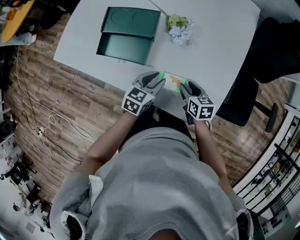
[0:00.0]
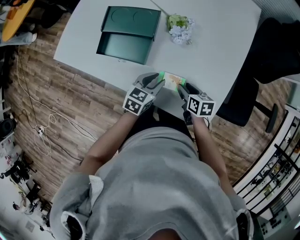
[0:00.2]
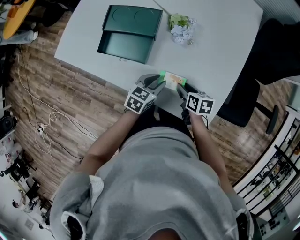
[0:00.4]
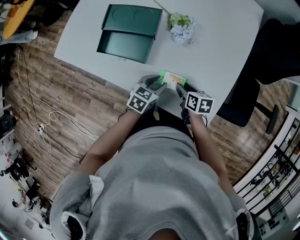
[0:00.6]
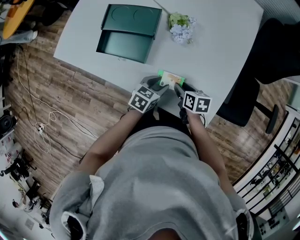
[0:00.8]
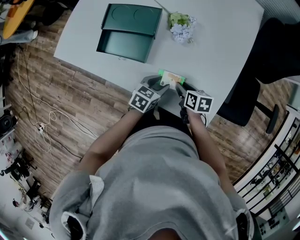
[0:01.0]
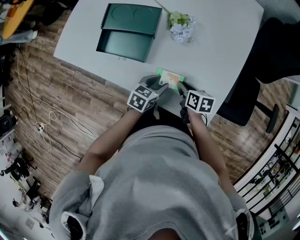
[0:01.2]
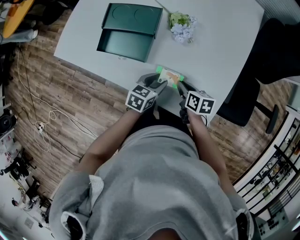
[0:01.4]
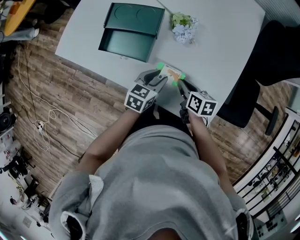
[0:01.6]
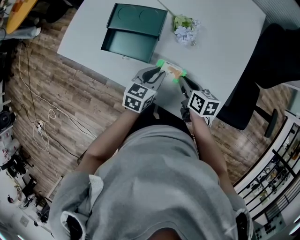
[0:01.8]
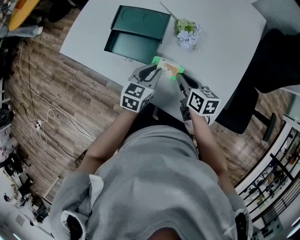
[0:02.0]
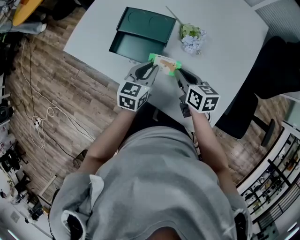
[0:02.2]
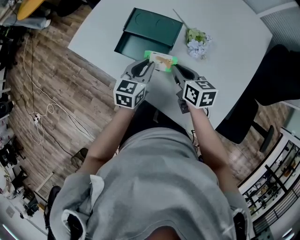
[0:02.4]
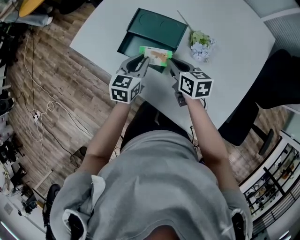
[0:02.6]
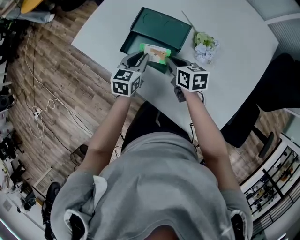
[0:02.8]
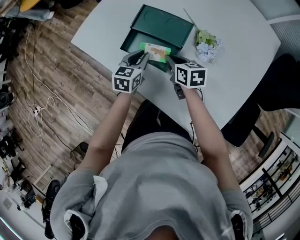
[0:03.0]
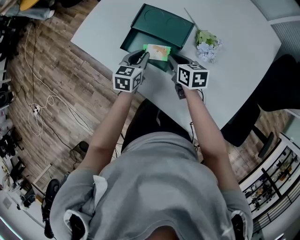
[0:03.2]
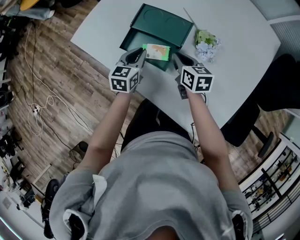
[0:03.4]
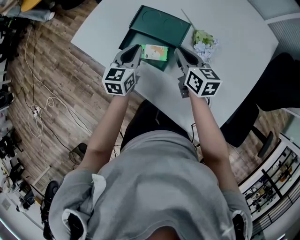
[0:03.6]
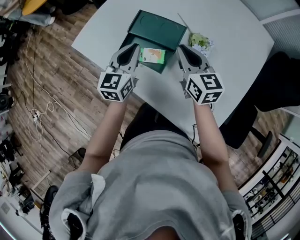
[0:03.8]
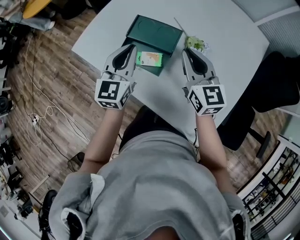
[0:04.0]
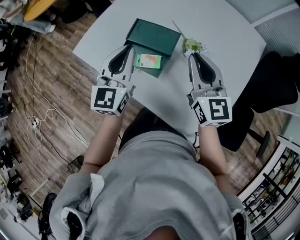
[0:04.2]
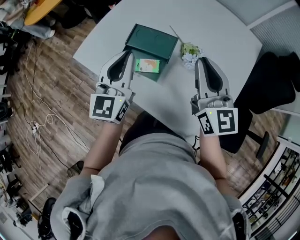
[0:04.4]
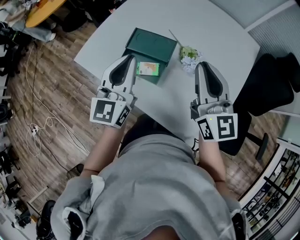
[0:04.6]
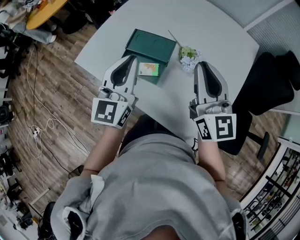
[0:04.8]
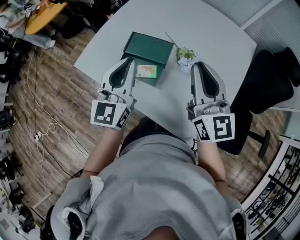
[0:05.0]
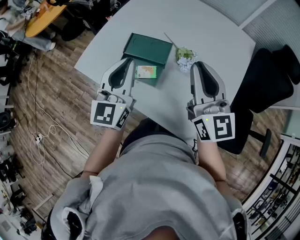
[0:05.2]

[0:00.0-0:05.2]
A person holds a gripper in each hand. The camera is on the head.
0:00.0 to 0:01.8: The left gripper moves roughly 5 cm downward and comes back, while the right gripper moves roughly 5 cm, and closes up.
0:01.8 to 0:03.4: The right gripper is displaced forward and to the left by approximately 20 cm, and rotates about 20 degrees. The left gripper shifts about 20 cm to the left and forward, and swivels some 20 degrees.
0:03.4 to 0:05.2: The grippers both shift upward by roughly 30 cm. The right gripper angles its fingers upward, by some 40 degrees; the left gripper angles its fingers upward, by some 30 degrees.

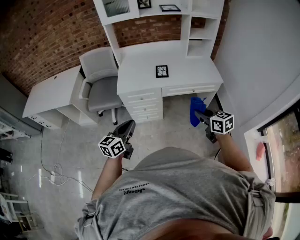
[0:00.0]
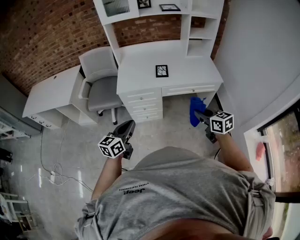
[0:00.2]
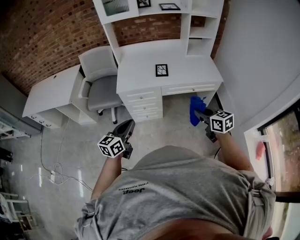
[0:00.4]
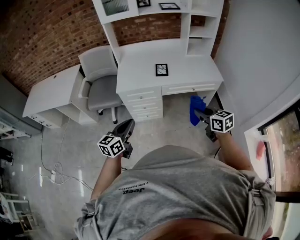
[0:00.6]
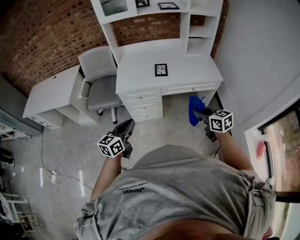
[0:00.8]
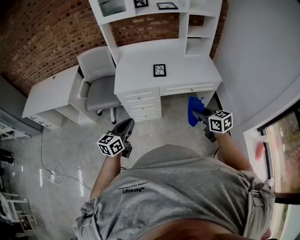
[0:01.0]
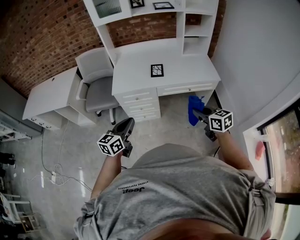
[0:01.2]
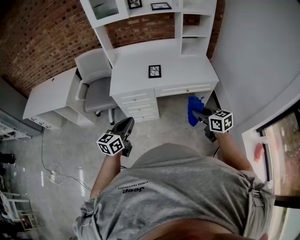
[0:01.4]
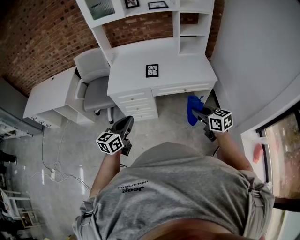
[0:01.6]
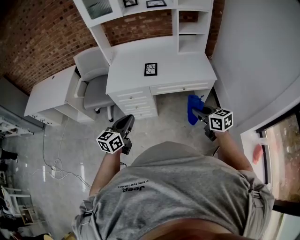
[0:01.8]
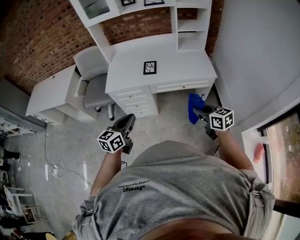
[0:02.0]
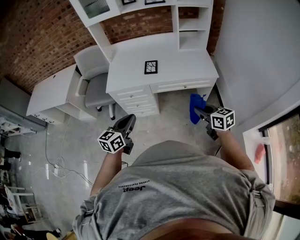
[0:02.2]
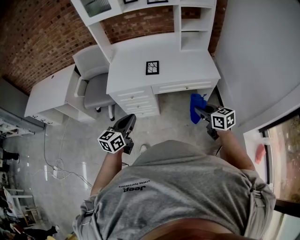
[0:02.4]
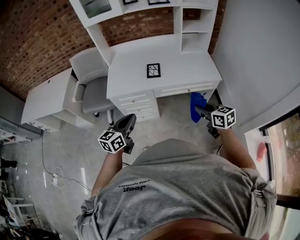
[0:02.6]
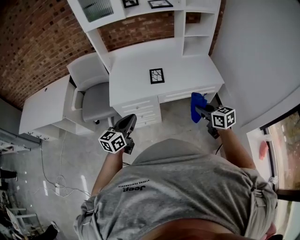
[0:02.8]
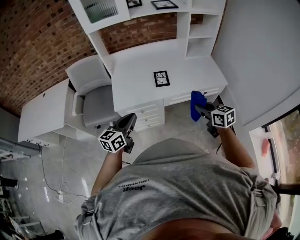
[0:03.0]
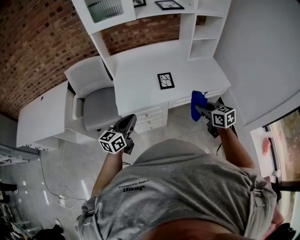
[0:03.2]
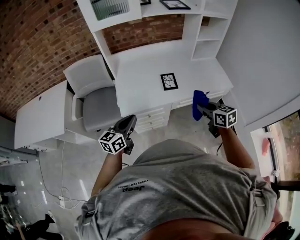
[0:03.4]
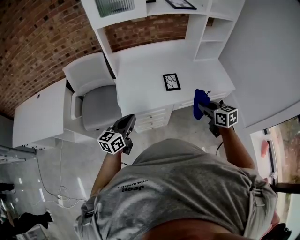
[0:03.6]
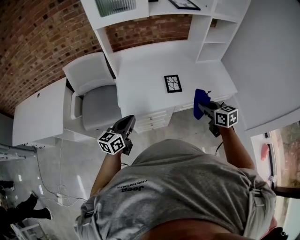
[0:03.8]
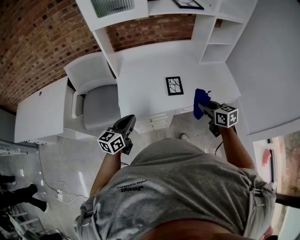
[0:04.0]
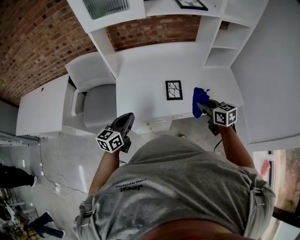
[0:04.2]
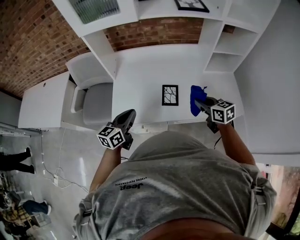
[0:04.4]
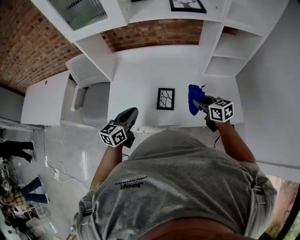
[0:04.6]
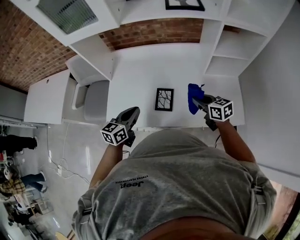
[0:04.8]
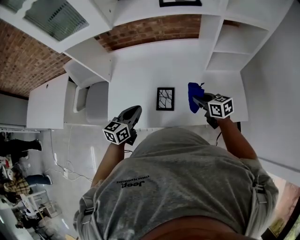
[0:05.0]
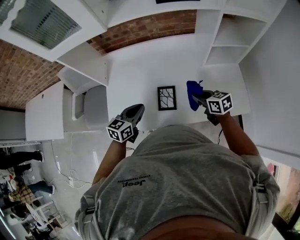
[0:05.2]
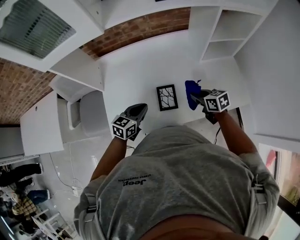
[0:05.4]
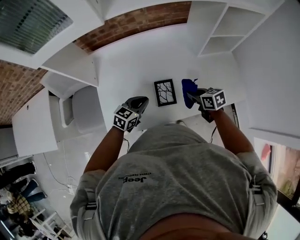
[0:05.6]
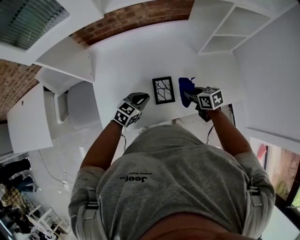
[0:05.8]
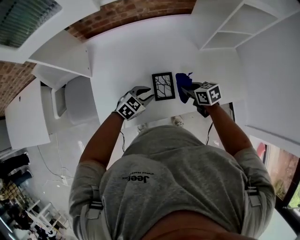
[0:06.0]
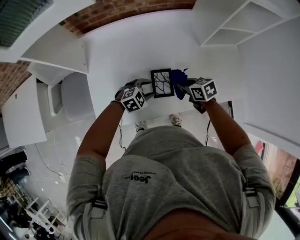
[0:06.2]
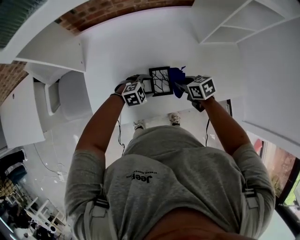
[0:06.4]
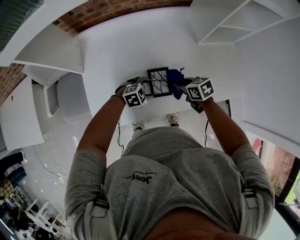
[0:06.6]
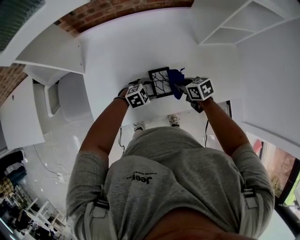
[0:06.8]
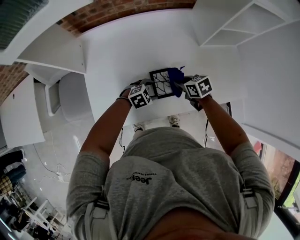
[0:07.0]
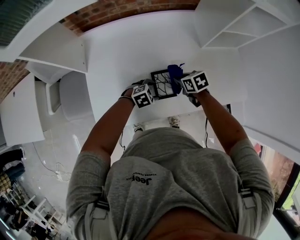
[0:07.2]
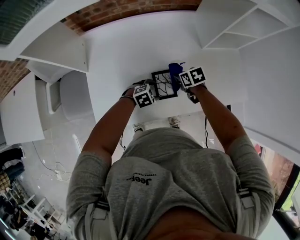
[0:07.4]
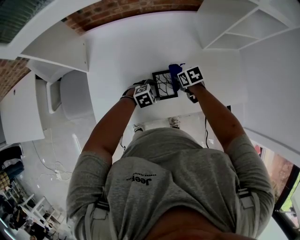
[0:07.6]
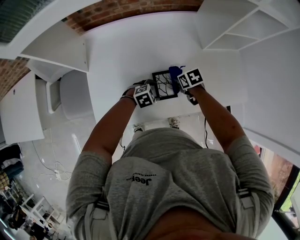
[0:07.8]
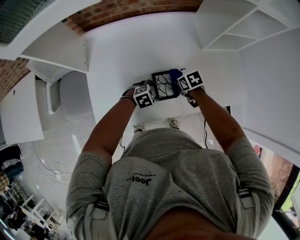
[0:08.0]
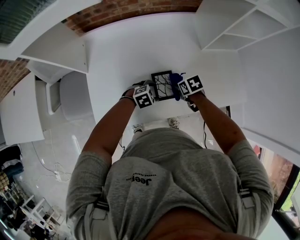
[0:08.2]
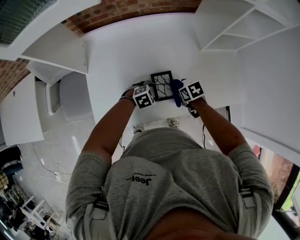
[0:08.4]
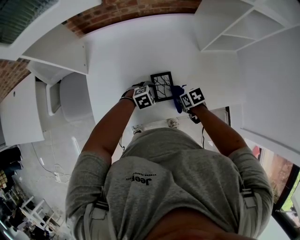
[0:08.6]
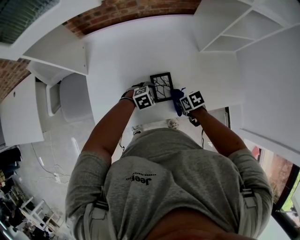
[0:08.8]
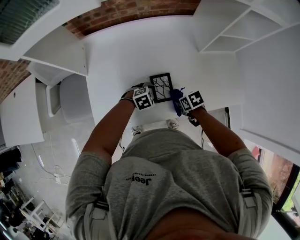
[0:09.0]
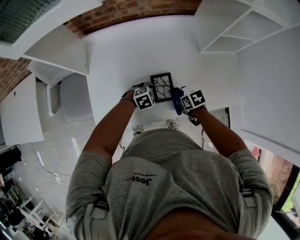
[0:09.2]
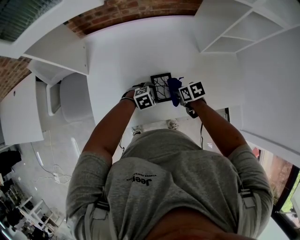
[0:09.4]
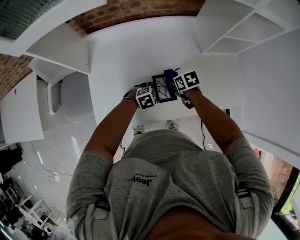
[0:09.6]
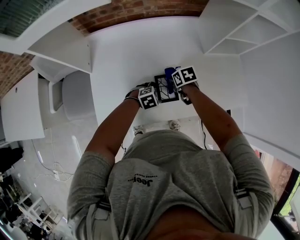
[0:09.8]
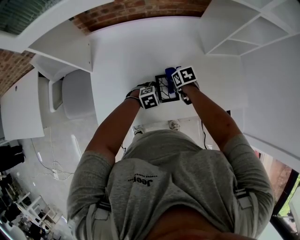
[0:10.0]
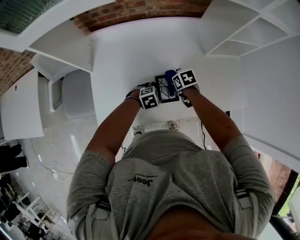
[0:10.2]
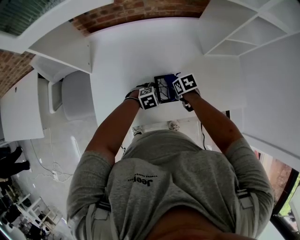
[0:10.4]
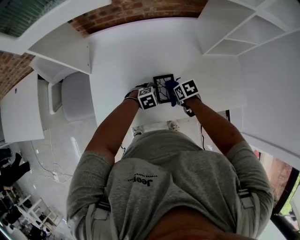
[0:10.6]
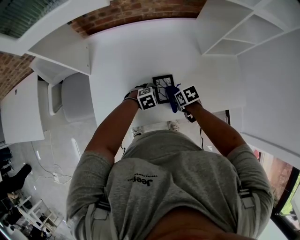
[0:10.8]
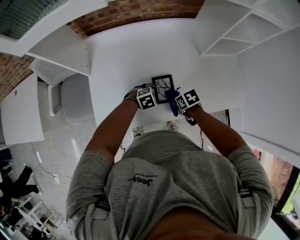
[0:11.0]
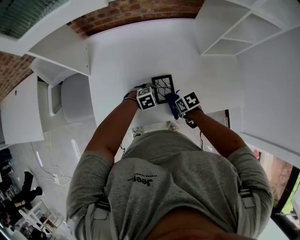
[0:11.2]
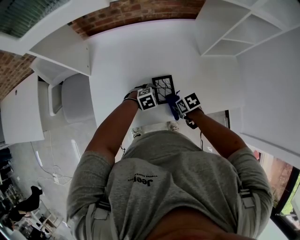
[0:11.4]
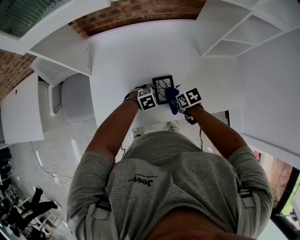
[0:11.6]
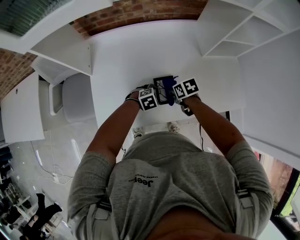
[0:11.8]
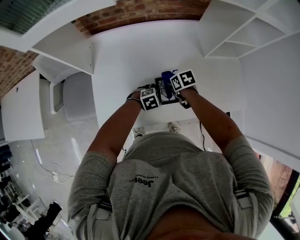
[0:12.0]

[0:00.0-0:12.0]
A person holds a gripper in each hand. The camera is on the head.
0:00.0 to 0:01.6: Both grippers travel together to the right, roughly 10 cm.
0:01.6 to 0:03.0: Both grippers travel together forward and to the left, about 20 cm.
0:03.0 to 0:04.4: The grippers both shift forward by approximately 25 cm.
0:04.4 to 0:06.0: The left gripper heads downward, forward and to the right, covering approximately 25 cm, and swivels approximately 60 degrees. The right gripper heads downward and forward, covering approximately 20 cm, and changes its angle by about 20 degrees.
0:06.0 to 0:07.6: Both grippers travel together downward, approximately 10 cm. The left gripper rotates about 20 degrees, and opens up.
0:07.6 to 0:09.0: The right gripper shifts by about 10 cm.
0:09.0 to 0:10.4: The right gripper moves approximately 10 cm.

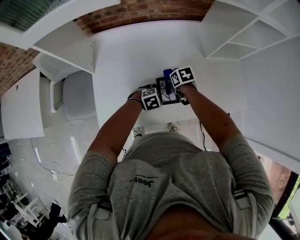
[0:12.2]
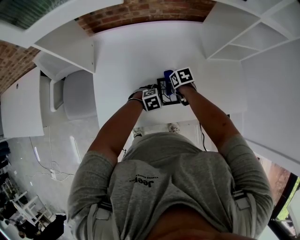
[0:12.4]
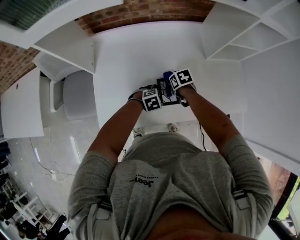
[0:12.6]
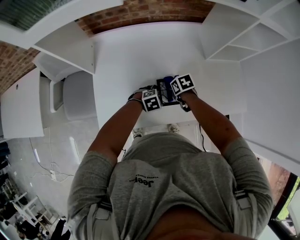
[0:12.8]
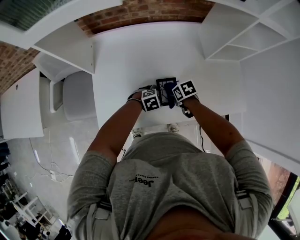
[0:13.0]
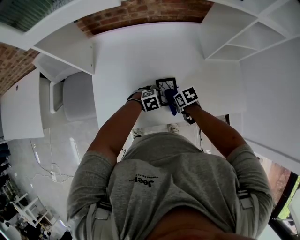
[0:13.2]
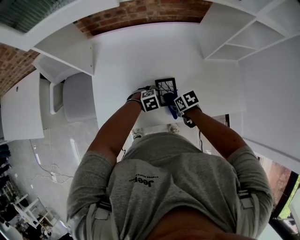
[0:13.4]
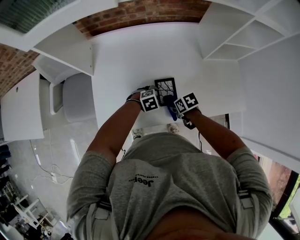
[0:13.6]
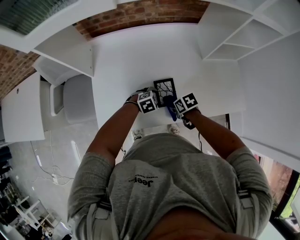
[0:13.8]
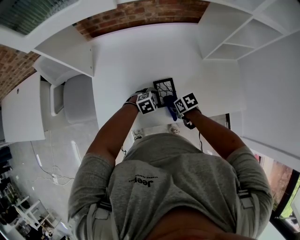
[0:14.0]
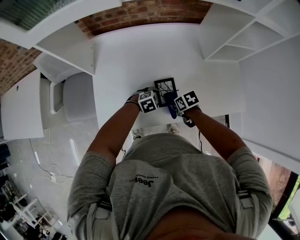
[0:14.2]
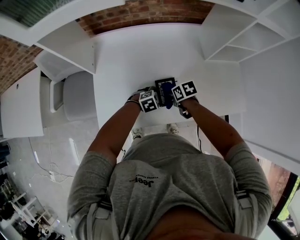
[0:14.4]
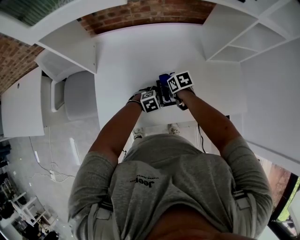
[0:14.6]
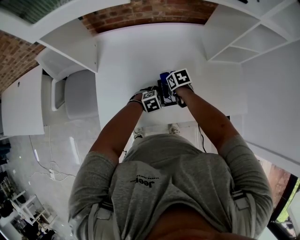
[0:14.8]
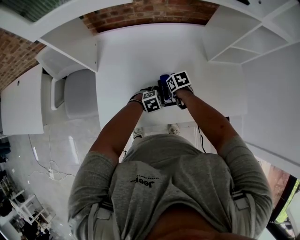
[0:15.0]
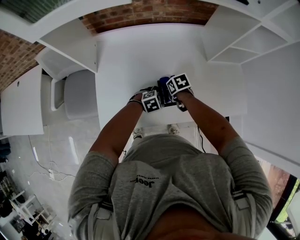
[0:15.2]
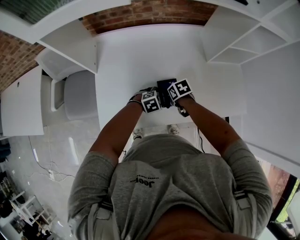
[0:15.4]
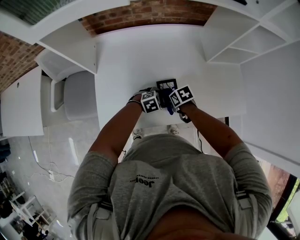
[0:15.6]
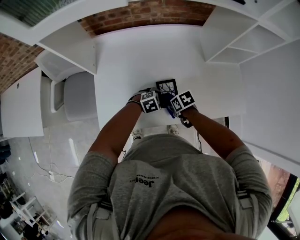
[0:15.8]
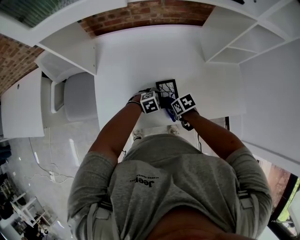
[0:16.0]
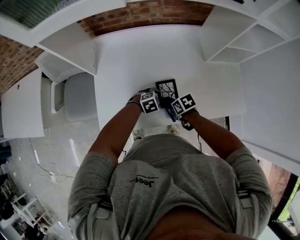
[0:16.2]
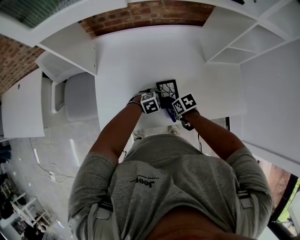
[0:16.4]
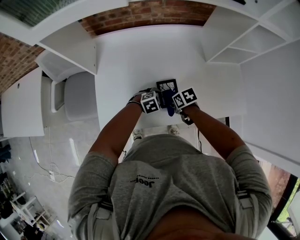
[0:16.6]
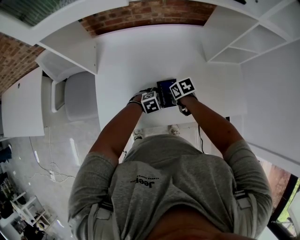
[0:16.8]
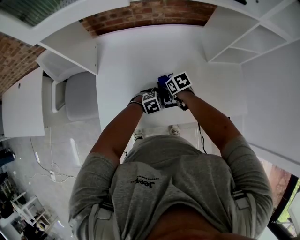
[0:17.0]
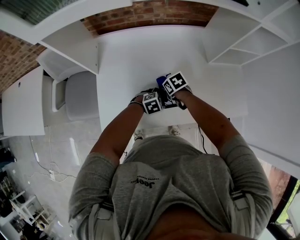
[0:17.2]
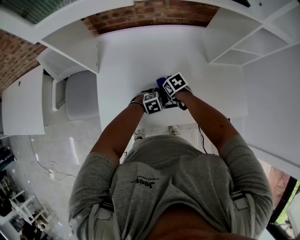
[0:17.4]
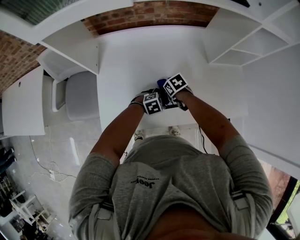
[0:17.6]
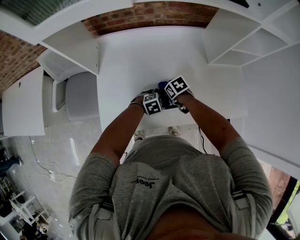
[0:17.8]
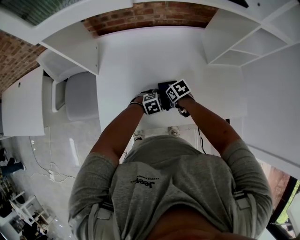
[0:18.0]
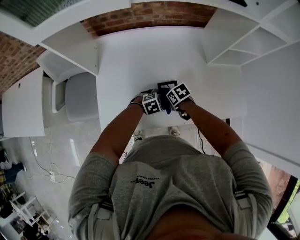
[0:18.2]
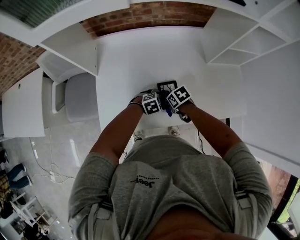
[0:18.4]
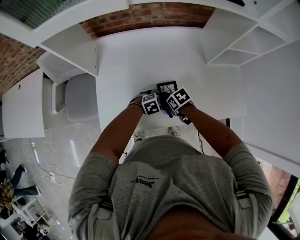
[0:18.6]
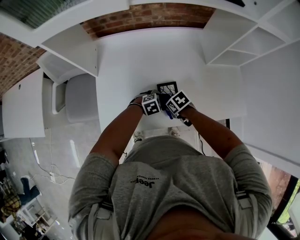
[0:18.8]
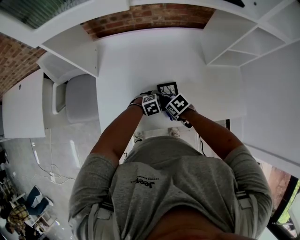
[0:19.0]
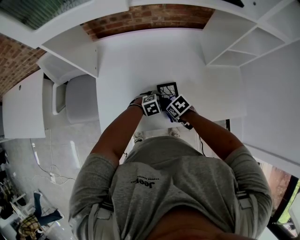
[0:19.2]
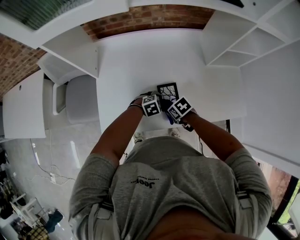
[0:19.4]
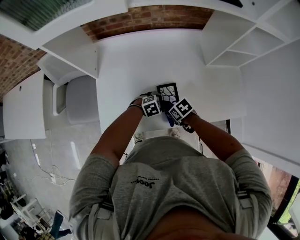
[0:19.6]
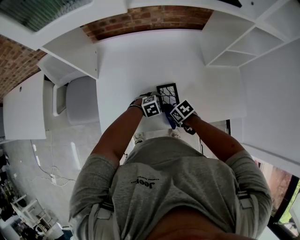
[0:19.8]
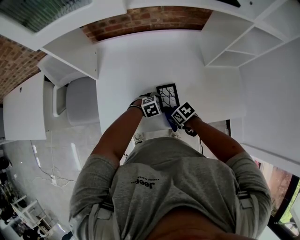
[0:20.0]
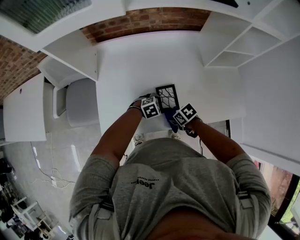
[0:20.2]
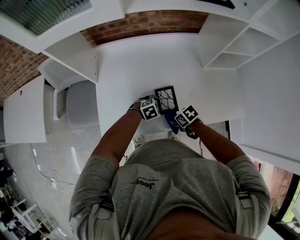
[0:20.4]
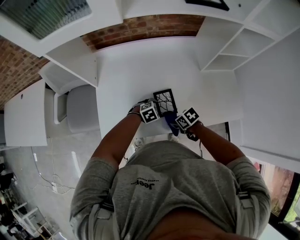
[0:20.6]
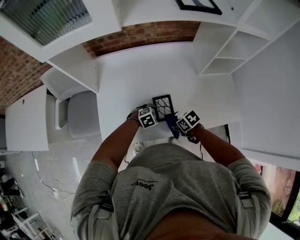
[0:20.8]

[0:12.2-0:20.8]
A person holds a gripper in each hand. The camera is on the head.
0:12.2 to 0:13.6: The right gripper changes place by roughly 15 cm.
0:13.6 to 0:15.0: The right gripper moves roughly 10 cm.
0:15.0 to 0:16.6: The right gripper ends up about 10 cm from where it was.
0:18.0 to 0:19.4: The right gripper moves approximately 5 cm.
0:19.4 to 0:20.8: The right gripper changes place by approximately 5 cm.
